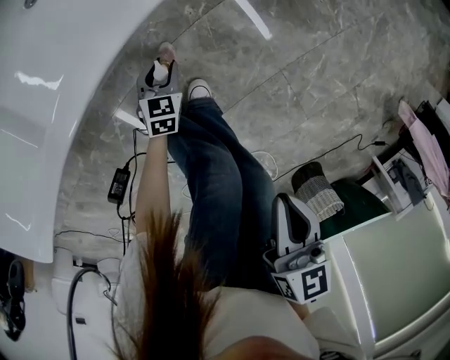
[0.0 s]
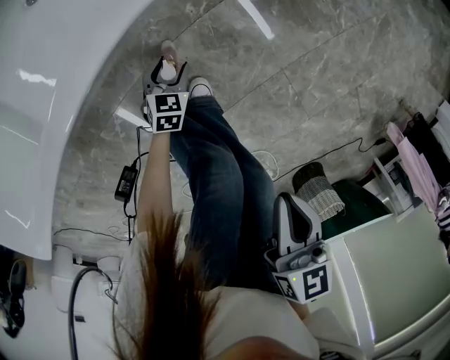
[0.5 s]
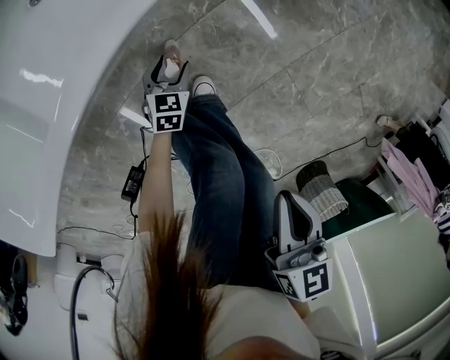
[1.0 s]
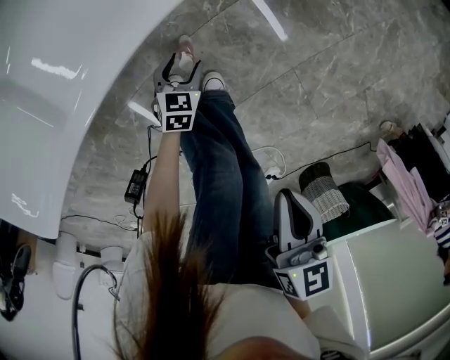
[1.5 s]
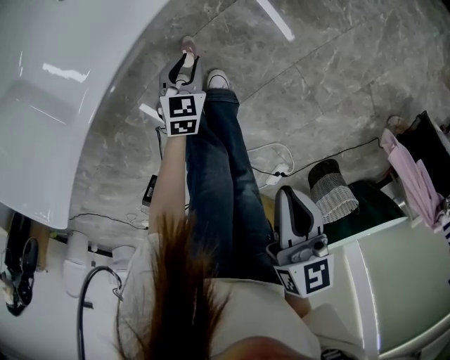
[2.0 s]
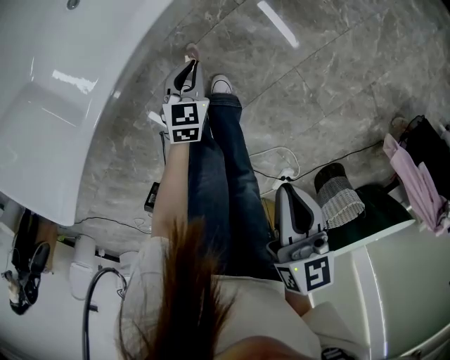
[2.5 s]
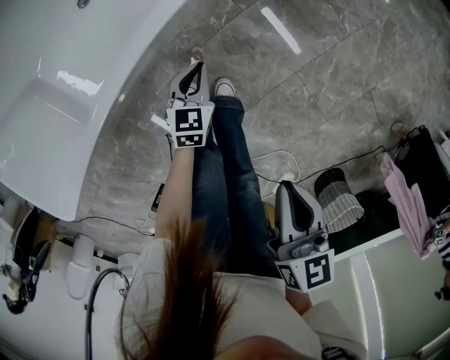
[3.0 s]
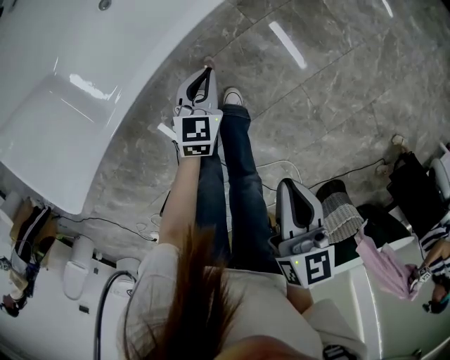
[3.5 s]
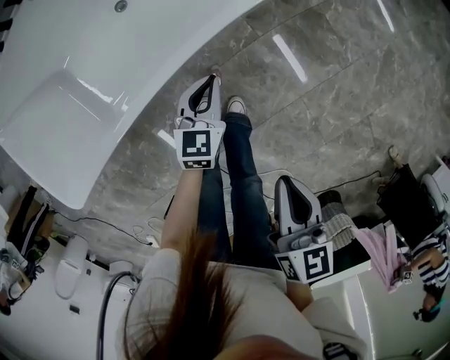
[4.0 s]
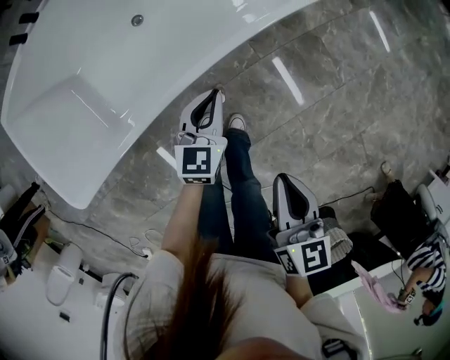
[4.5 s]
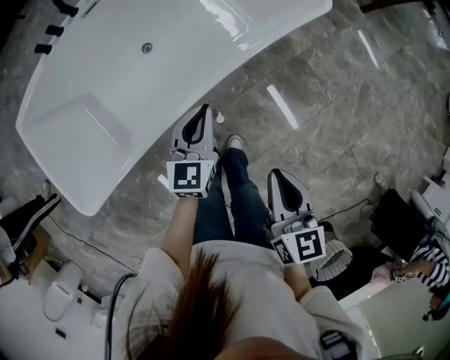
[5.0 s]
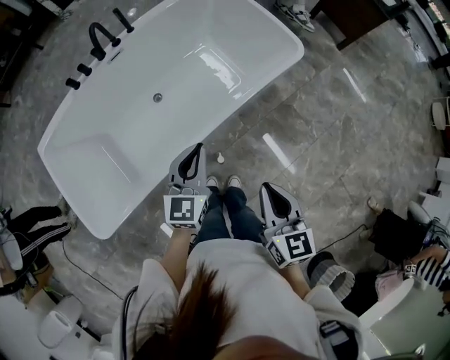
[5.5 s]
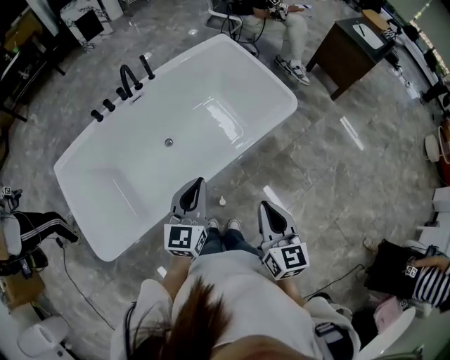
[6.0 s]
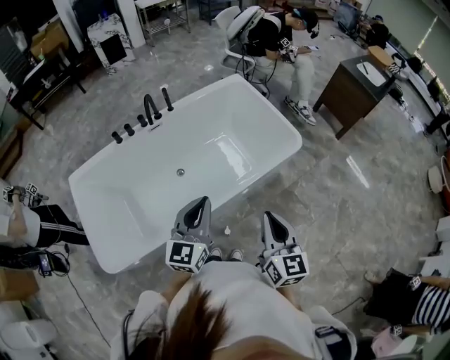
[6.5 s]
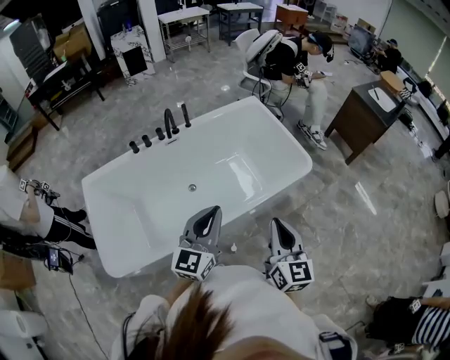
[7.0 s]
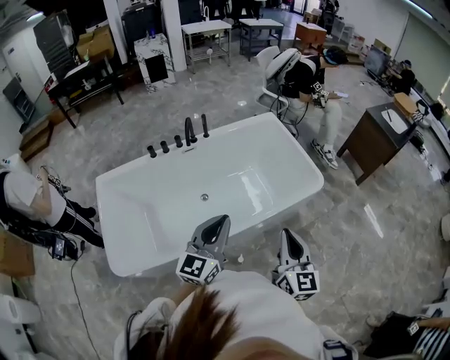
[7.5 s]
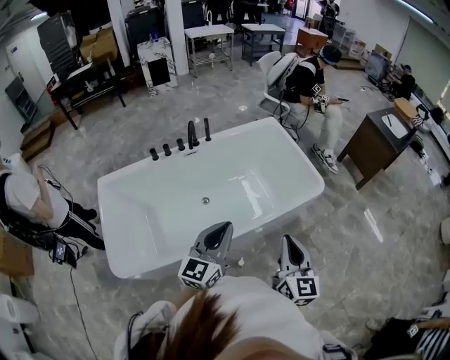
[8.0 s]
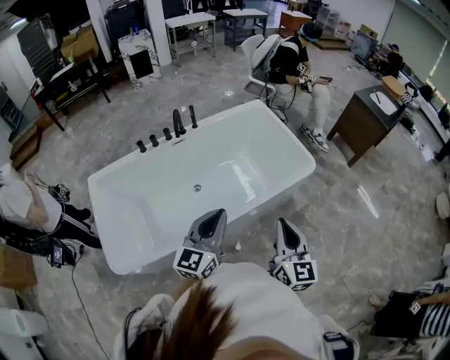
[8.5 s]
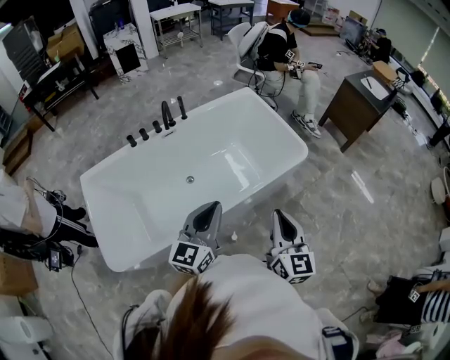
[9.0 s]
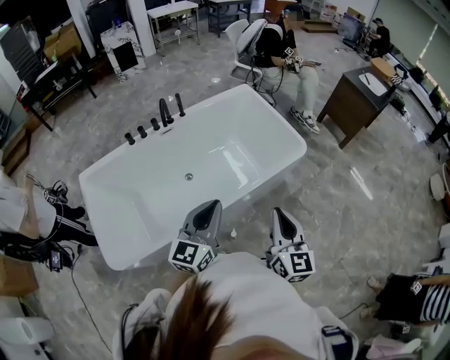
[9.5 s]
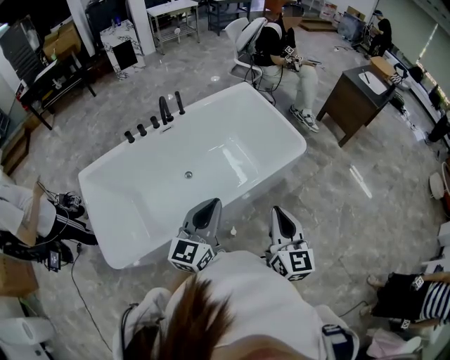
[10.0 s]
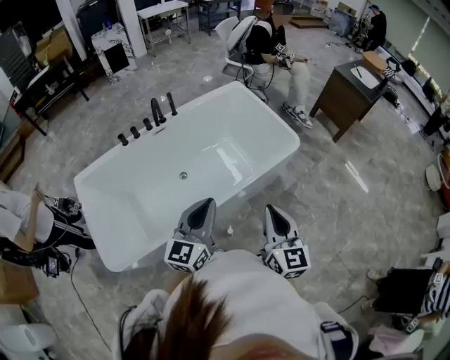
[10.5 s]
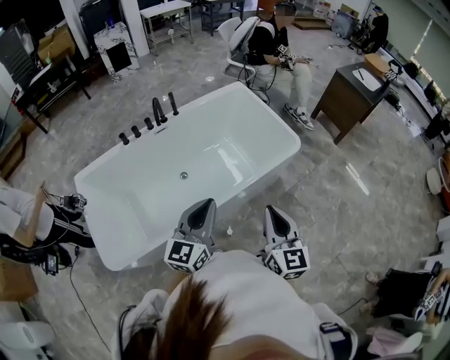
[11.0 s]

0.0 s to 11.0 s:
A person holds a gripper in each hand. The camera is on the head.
0.0 to 2.0 s: The left gripper shifts about 10 cm upward, and opens and closes again, while the right gripper heads upward, covering some 5 cm.
2.0 to 3.5 s: The right gripper heads upward, covering about 5 cm. The left gripper shifts approximately 15 cm upward, and closes up.
3.5 to 5.5 s: The right gripper moves upward, approximately 20 cm, and swivels about 20 degrees. Meanwhile the left gripper is displaced upward by about 40 cm, and turns by roughly 30 degrees.
5.5 to 7.5 s: The two grippers go about 20 cm upward. The right gripper turns by about 20 degrees.
7.5 to 11.0 s: The grippers move only a little.

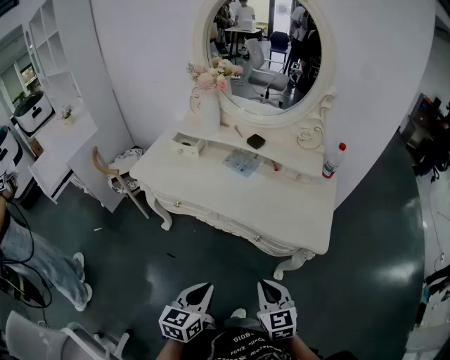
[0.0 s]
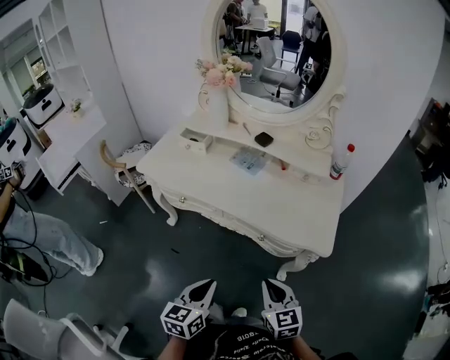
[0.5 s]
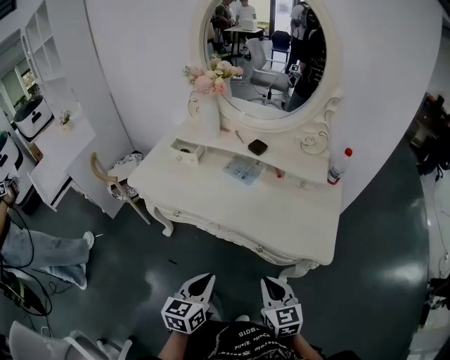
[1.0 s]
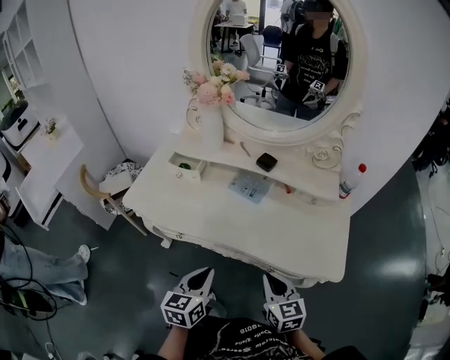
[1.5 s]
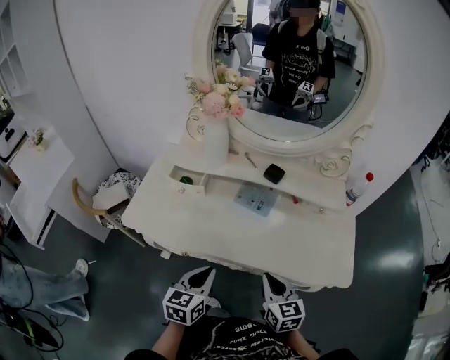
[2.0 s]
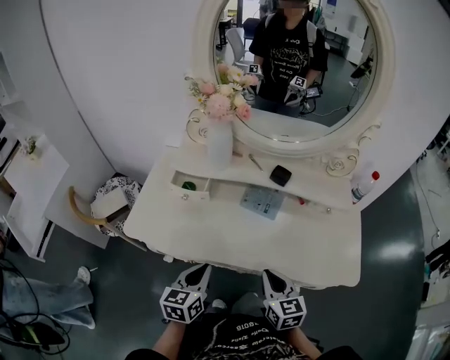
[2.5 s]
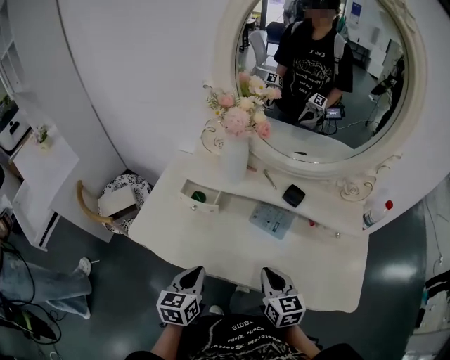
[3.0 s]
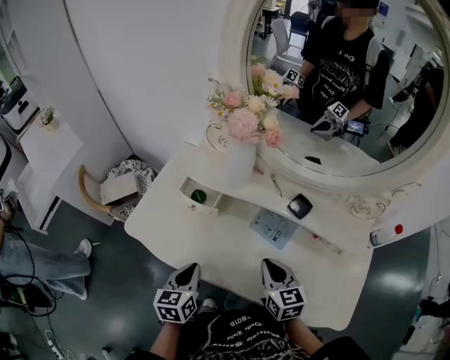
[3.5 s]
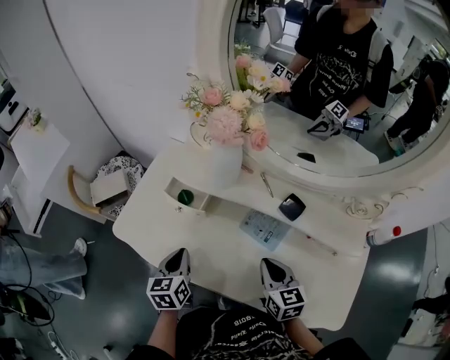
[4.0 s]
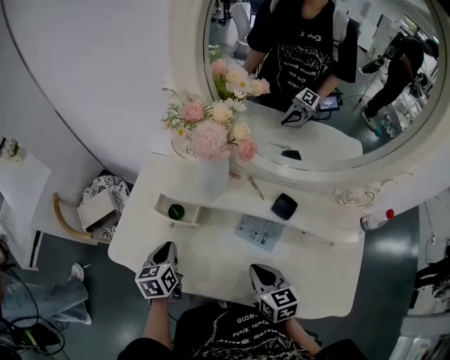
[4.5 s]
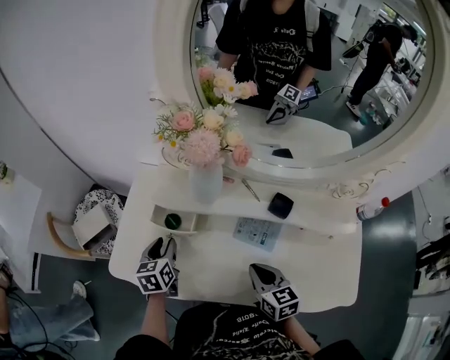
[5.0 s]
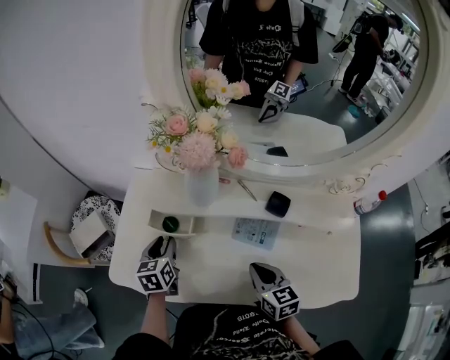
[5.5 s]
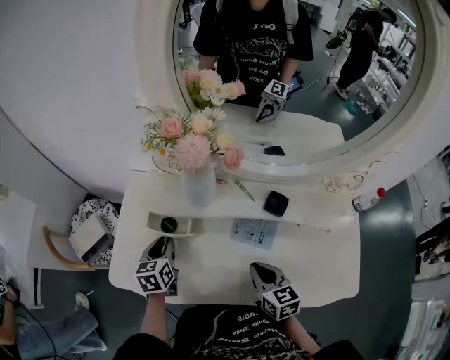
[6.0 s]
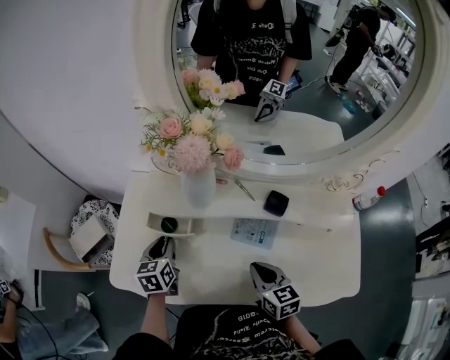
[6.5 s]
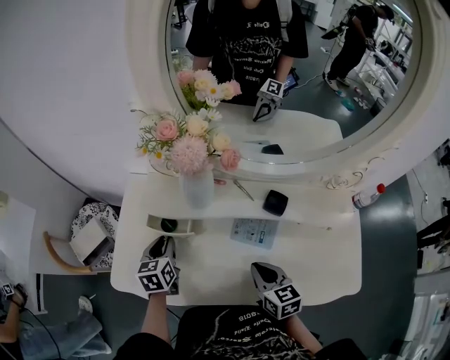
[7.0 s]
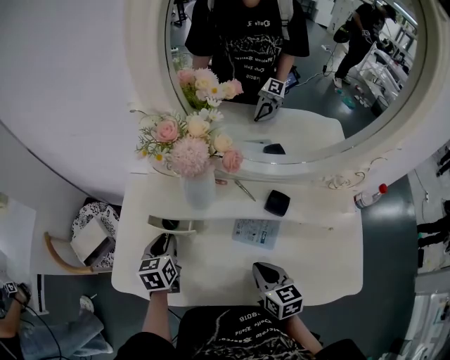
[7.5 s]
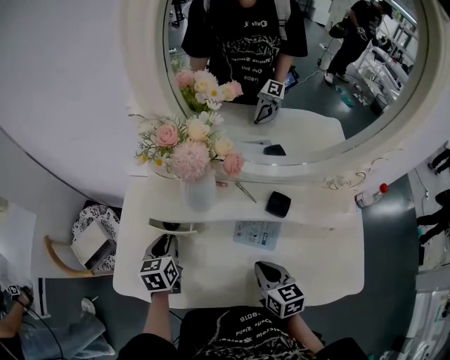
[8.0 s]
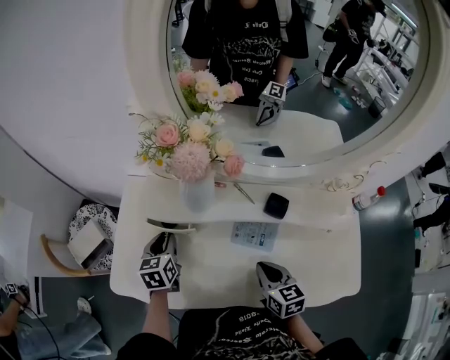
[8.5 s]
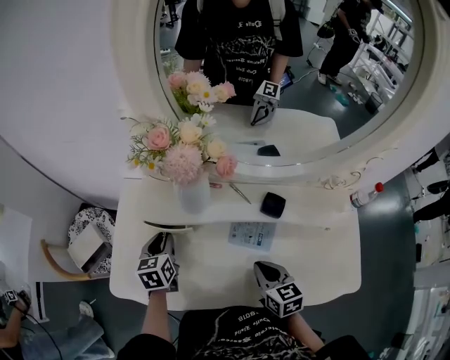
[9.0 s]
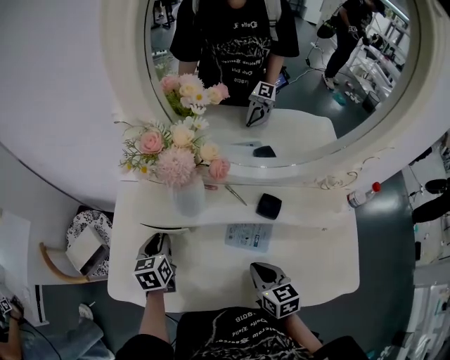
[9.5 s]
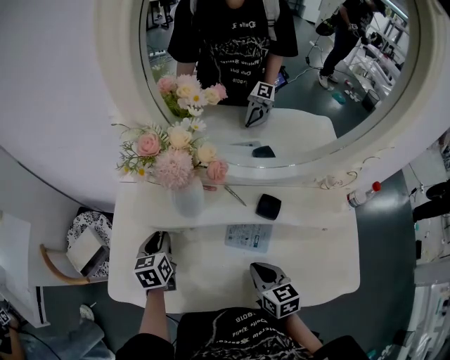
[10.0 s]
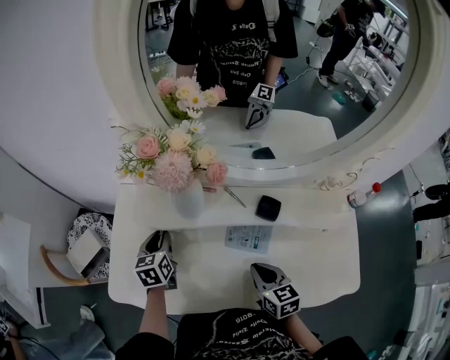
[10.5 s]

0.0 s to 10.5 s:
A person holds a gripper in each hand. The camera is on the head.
0.0 to 2.0 s: Both grippers move forward and to the left, approximately 25 cm.
2.0 to 4.0 s: The right gripper goes approximately 20 cm forward. The left gripper goes some 20 cm forward and to the left, and swivels approximately 30 degrees.
4.0 to 6.5 s: The left gripper moves forward, roughly 15 cm.
6.5 to 10.5 s: There are only small adjustments of the grippers.

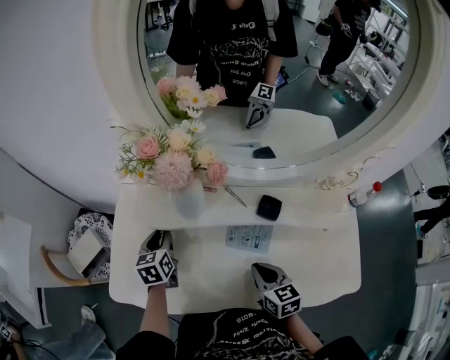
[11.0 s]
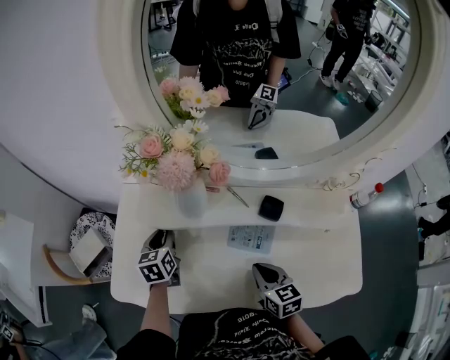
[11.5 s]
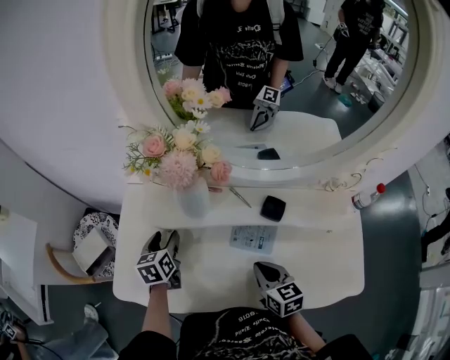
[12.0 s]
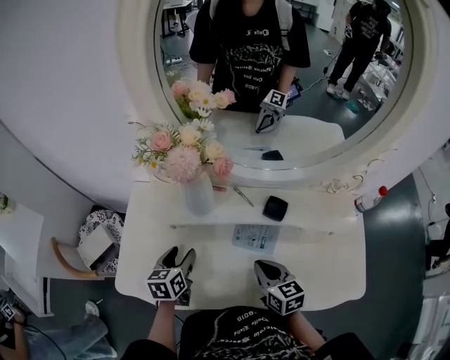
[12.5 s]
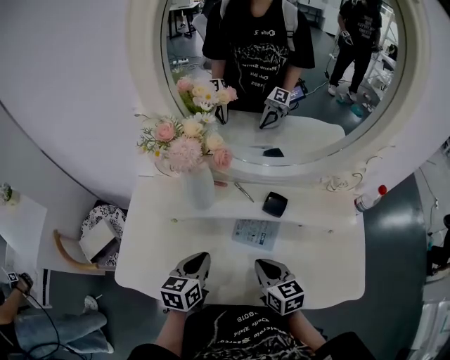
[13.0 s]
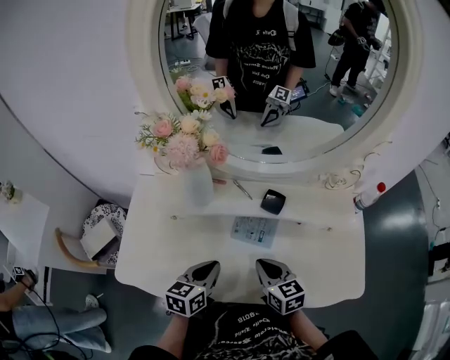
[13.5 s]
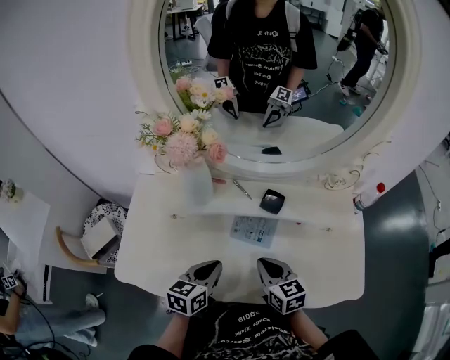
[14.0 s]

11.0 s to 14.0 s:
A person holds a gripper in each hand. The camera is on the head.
11.0 to 12.5 s: The left gripper heads backward, covering some 10 cm, and opens up.
12.5 to 14.0 s: The left gripper heads to the right and backward, covering approximately 15 cm, and closes its fingers.

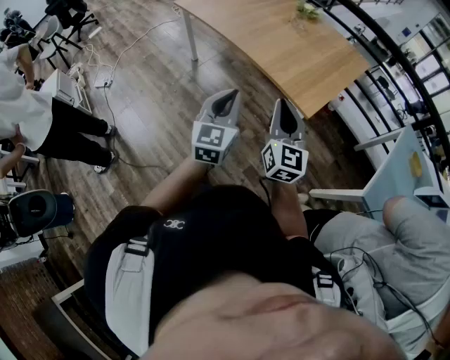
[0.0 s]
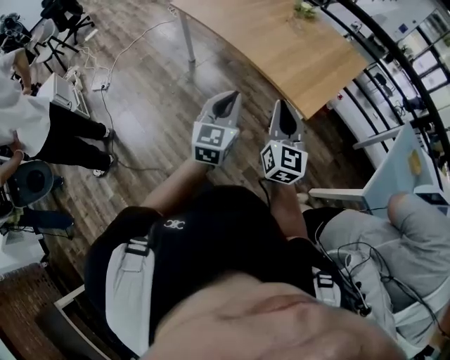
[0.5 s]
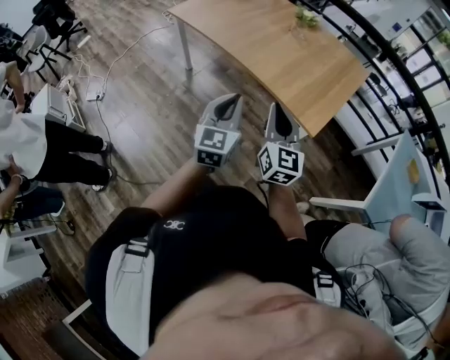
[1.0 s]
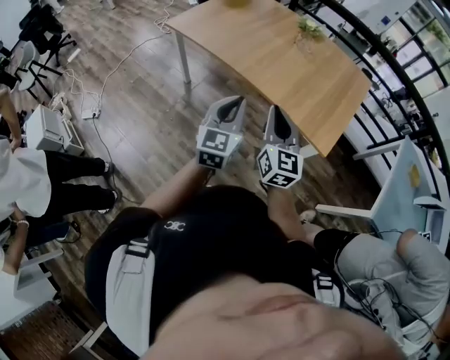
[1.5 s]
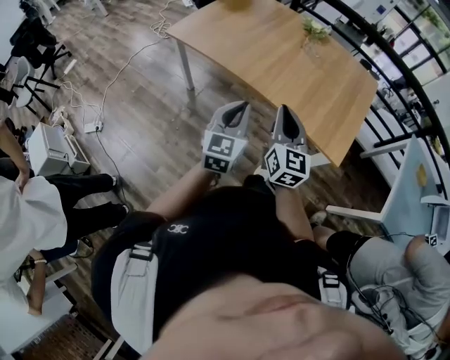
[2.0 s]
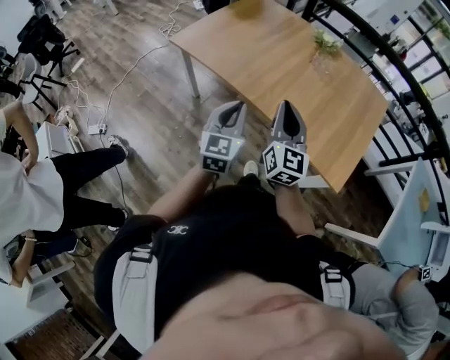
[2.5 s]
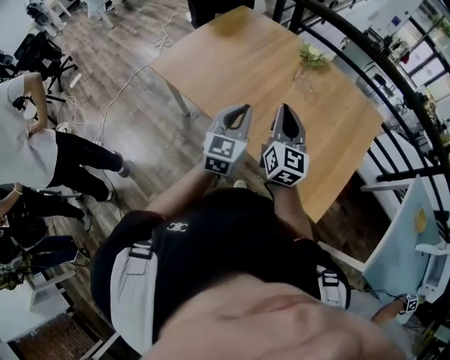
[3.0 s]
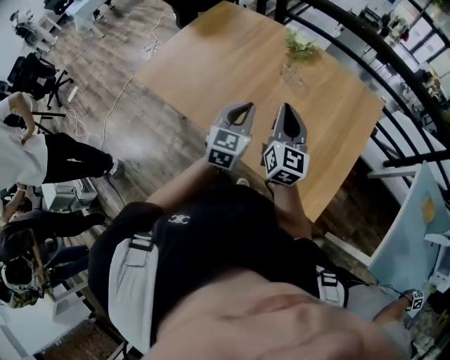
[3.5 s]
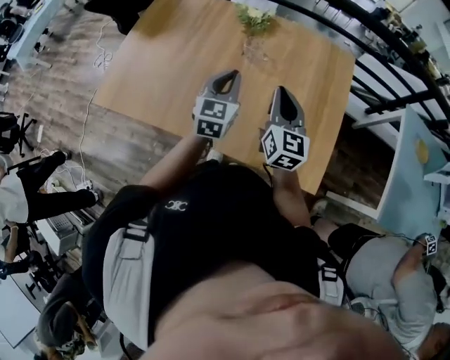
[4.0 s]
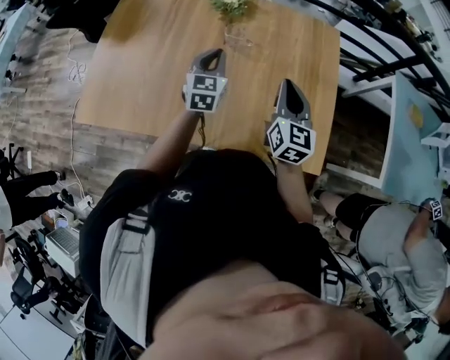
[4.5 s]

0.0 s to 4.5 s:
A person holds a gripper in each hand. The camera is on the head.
0.0 to 2.0 s: The two grippers go approximately 35 cm forward and to the left.
2.0 to 4.5 s: The two grippers travel together, some 50 cm. The right gripper swivels approximately 30 degrees. Meanwhile the left gripper swivels about 20 degrees.
